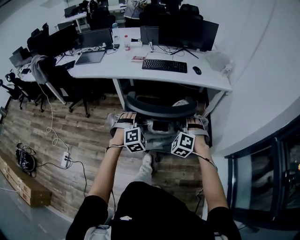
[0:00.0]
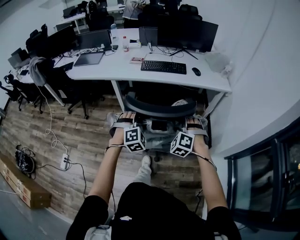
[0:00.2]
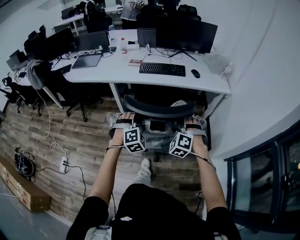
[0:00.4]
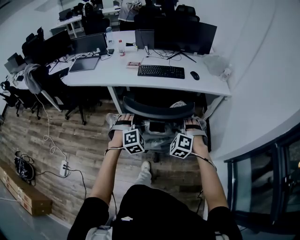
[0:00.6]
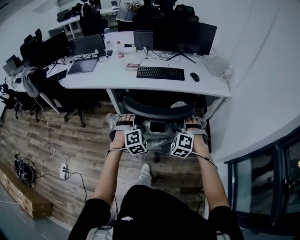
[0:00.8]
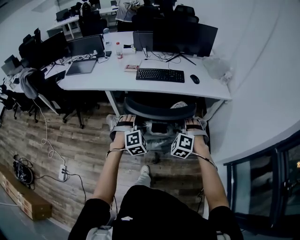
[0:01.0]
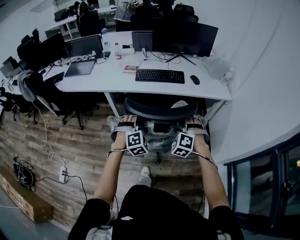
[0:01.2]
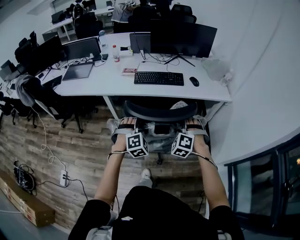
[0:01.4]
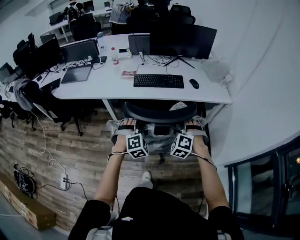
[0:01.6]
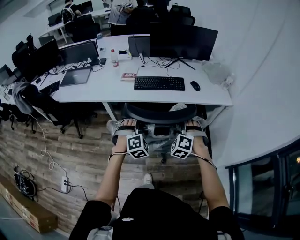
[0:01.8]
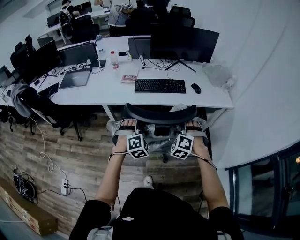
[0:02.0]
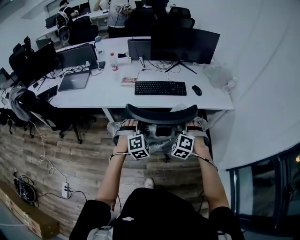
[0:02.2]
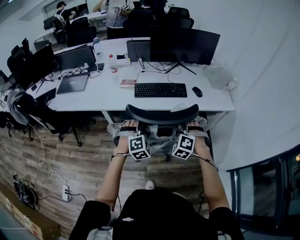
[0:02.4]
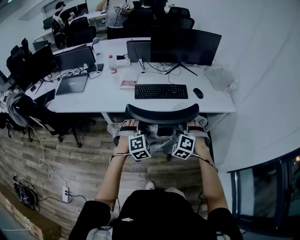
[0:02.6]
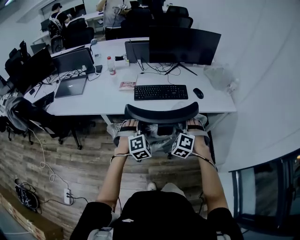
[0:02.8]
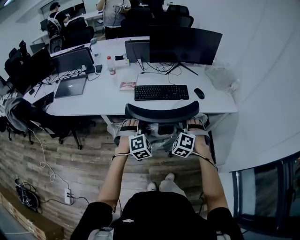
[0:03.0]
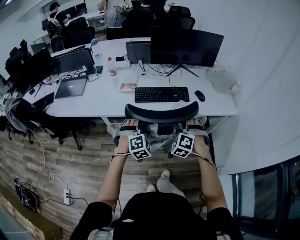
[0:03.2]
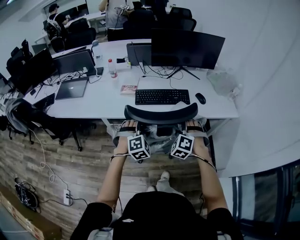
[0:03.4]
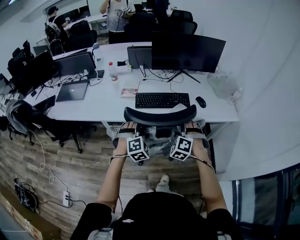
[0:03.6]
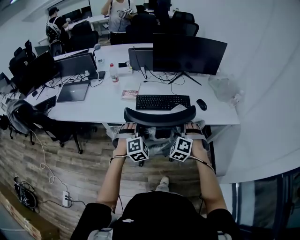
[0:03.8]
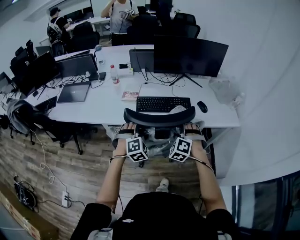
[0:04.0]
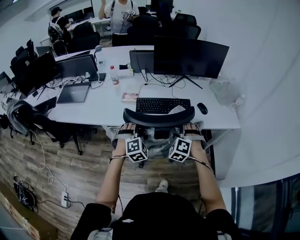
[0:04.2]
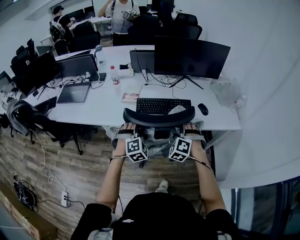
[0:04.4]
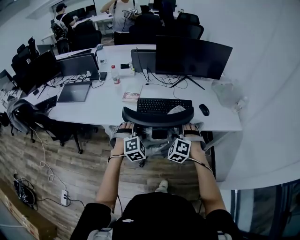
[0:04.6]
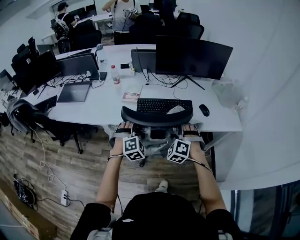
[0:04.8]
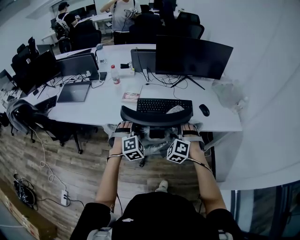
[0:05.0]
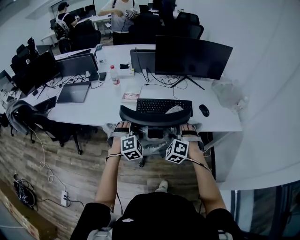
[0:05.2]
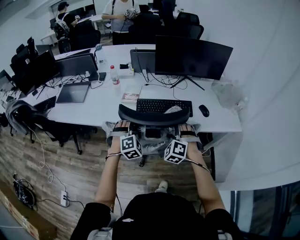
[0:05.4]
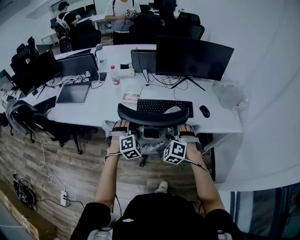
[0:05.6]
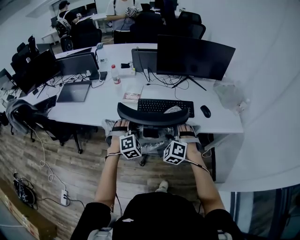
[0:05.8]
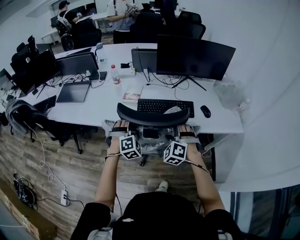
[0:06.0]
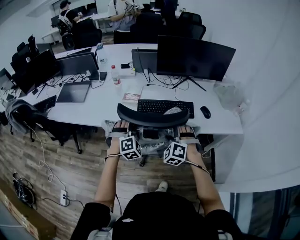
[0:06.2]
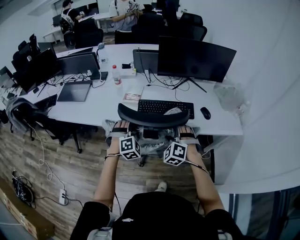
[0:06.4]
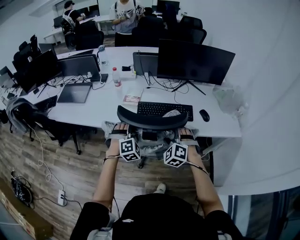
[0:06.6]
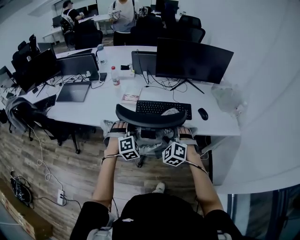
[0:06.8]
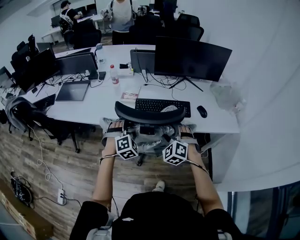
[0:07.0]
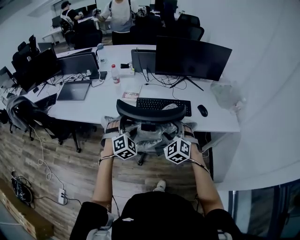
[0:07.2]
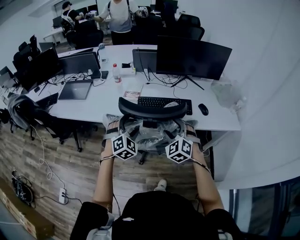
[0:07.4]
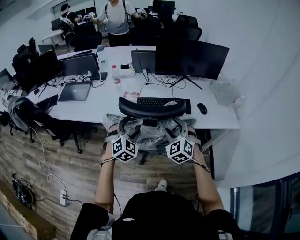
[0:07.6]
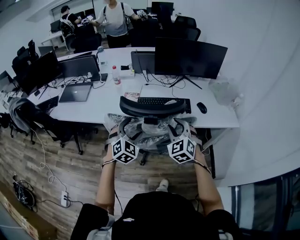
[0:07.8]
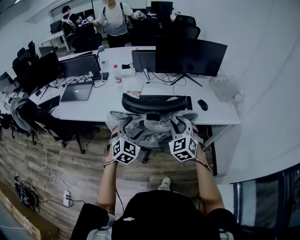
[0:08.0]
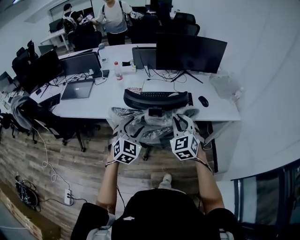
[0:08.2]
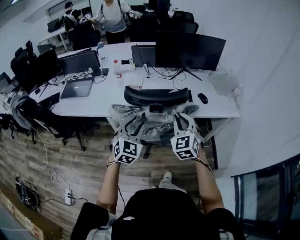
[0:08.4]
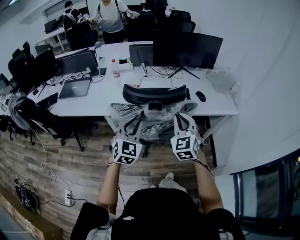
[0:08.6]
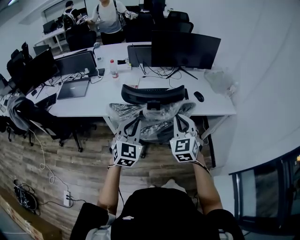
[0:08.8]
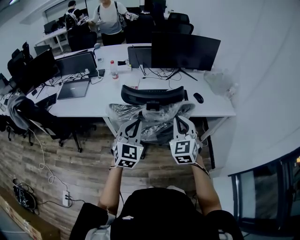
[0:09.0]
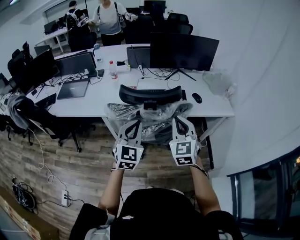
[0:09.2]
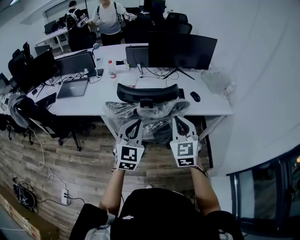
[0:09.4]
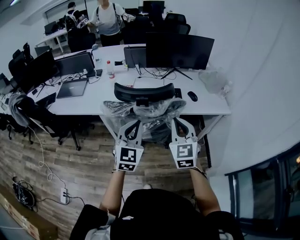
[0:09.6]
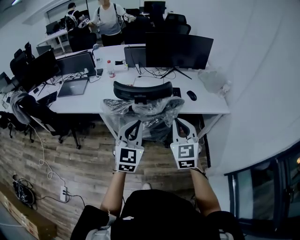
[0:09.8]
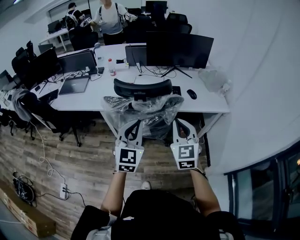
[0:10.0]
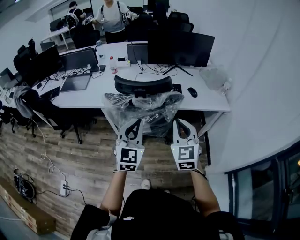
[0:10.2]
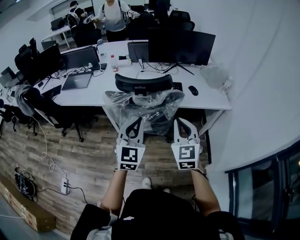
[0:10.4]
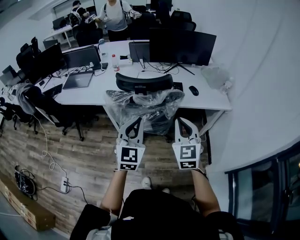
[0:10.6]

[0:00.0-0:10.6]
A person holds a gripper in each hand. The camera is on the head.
0:00.0 to 0:01.6: Both grippers travel together forward, approximately 20 cm.
0:01.6 to 0:03.0: The two grippers go approximately 15 cm forward.
0:03.0 to 0:04.6: The grippers both shift forward by about 10 cm.
0:04.6 to 0:06.0: The grippers move only a little.
0:06.0 to 0:07.6: The left gripper goes approximately 10 cm backward and upward, and rotates roughly 20 degrees; the right gripper goes about 10 cm upward and backward, and swivels some 20 degrees.
0:07.6 to 0:09.0: The grippers both shift backward and upward by roughly 10 cm. The right gripper turns by roughly 20 degrees, and closes up. Meanwhile the left gripper swivels some 30 degrees, and closes up.
0:09.0 to 0:10.6: Both grippers move backward and to the right, about 15 cm.

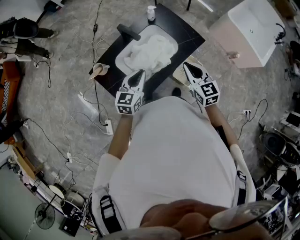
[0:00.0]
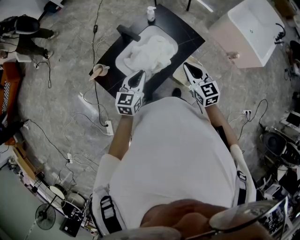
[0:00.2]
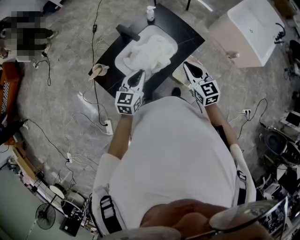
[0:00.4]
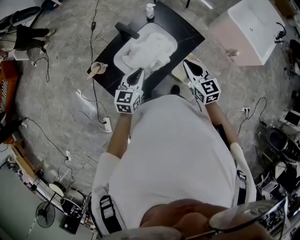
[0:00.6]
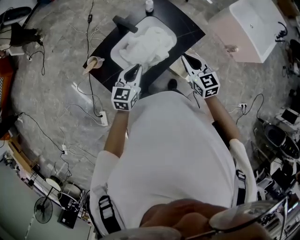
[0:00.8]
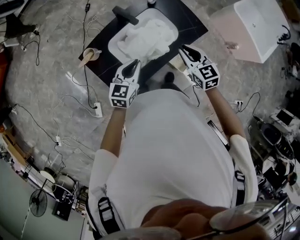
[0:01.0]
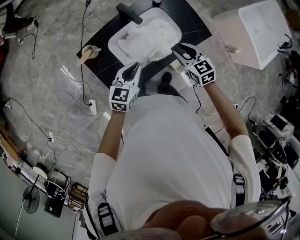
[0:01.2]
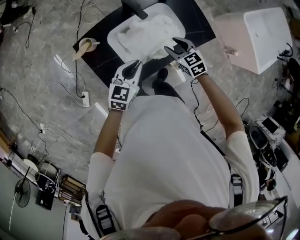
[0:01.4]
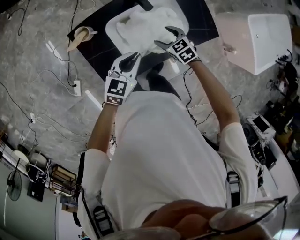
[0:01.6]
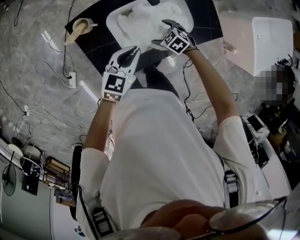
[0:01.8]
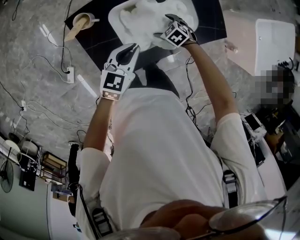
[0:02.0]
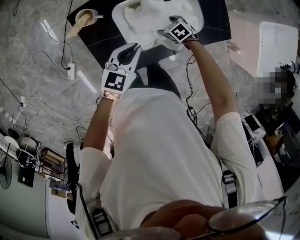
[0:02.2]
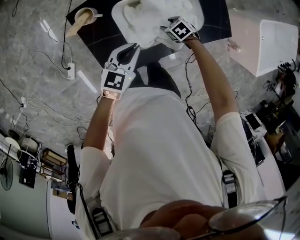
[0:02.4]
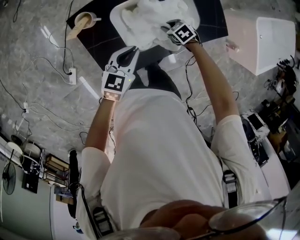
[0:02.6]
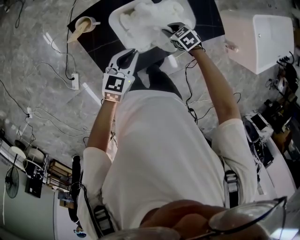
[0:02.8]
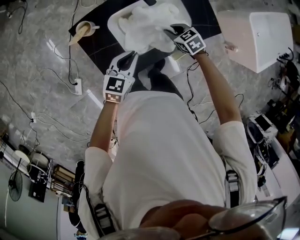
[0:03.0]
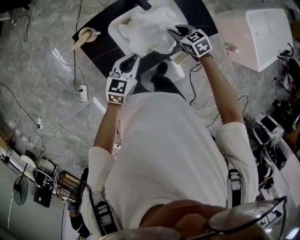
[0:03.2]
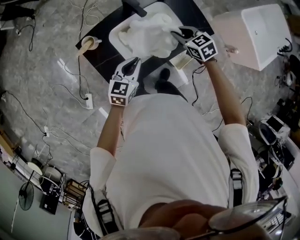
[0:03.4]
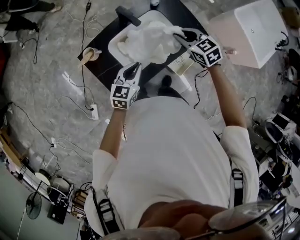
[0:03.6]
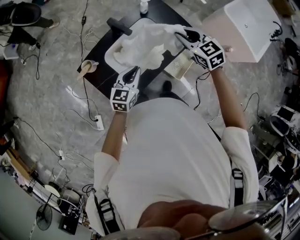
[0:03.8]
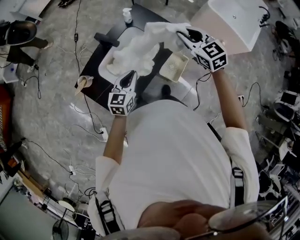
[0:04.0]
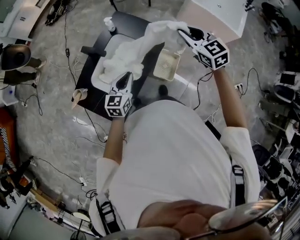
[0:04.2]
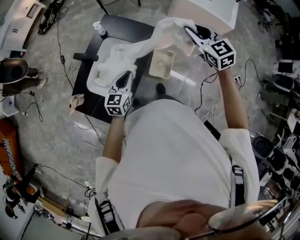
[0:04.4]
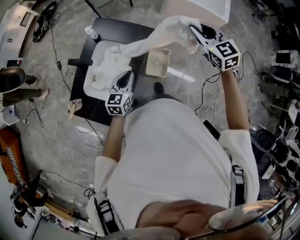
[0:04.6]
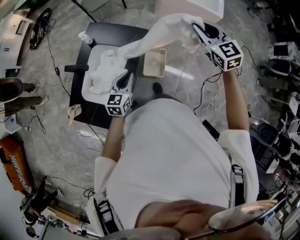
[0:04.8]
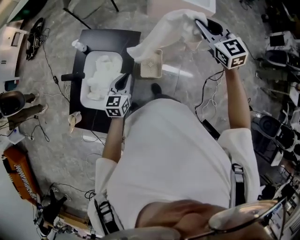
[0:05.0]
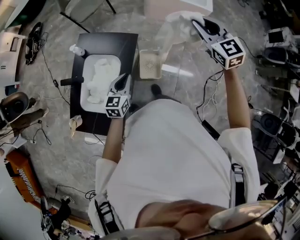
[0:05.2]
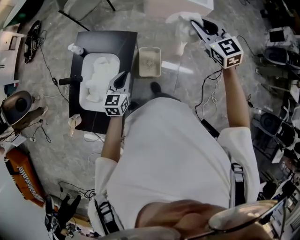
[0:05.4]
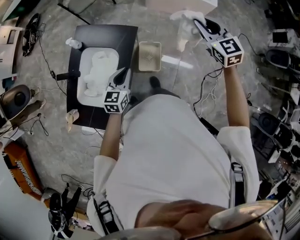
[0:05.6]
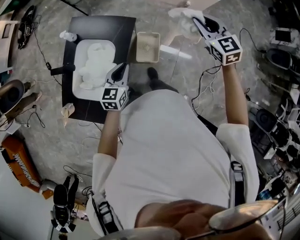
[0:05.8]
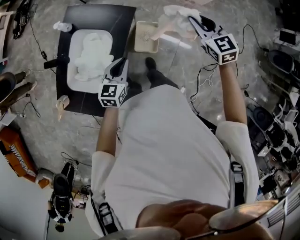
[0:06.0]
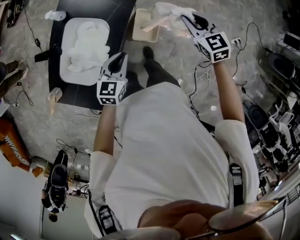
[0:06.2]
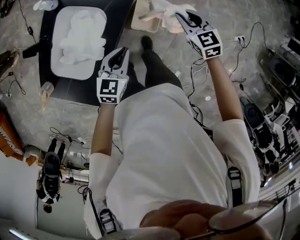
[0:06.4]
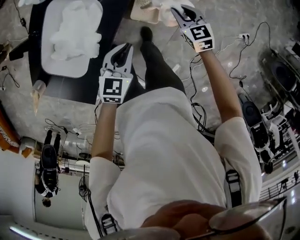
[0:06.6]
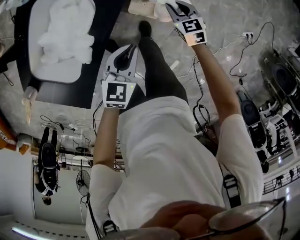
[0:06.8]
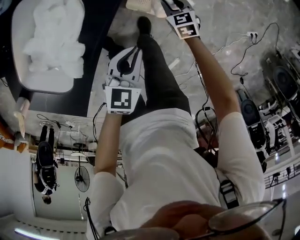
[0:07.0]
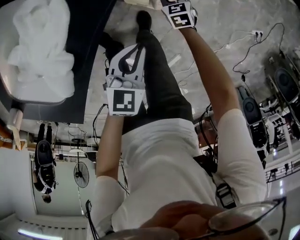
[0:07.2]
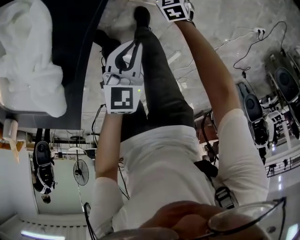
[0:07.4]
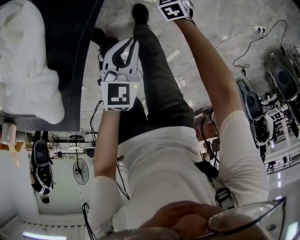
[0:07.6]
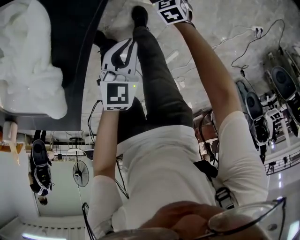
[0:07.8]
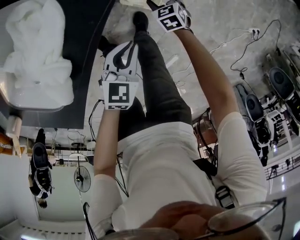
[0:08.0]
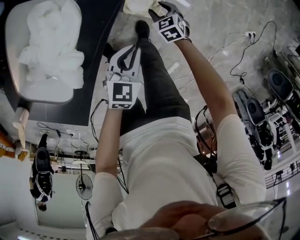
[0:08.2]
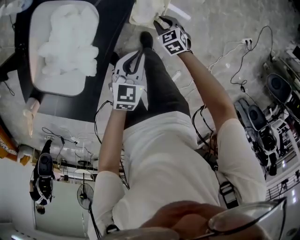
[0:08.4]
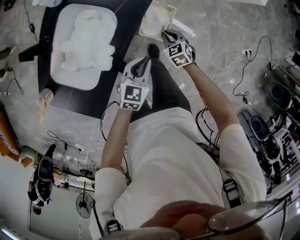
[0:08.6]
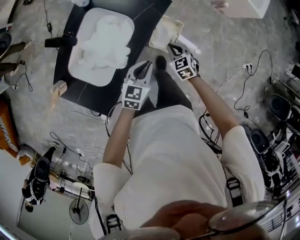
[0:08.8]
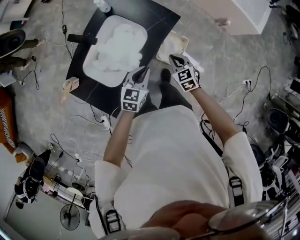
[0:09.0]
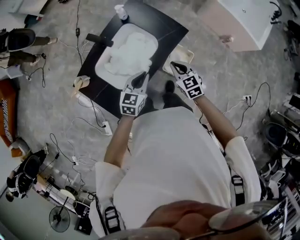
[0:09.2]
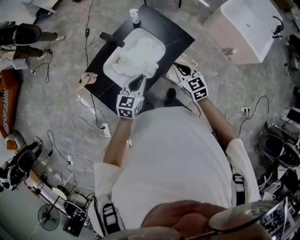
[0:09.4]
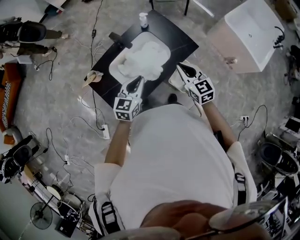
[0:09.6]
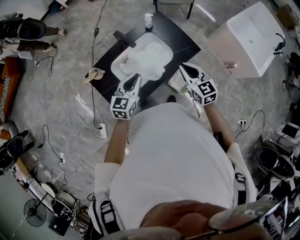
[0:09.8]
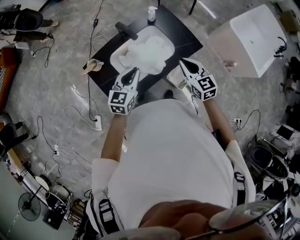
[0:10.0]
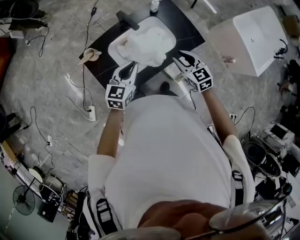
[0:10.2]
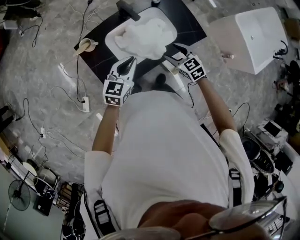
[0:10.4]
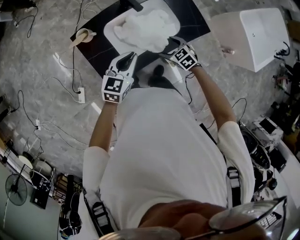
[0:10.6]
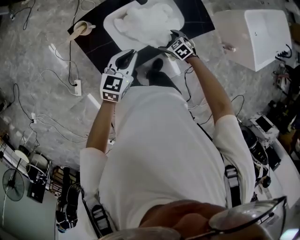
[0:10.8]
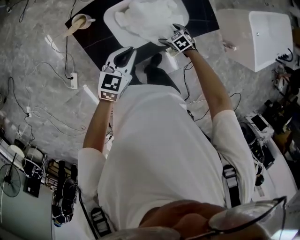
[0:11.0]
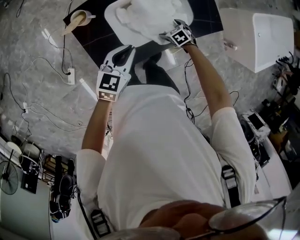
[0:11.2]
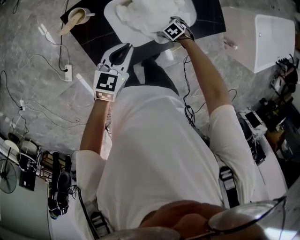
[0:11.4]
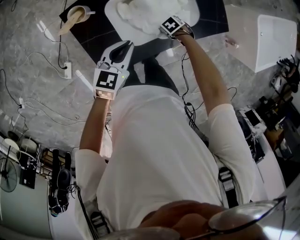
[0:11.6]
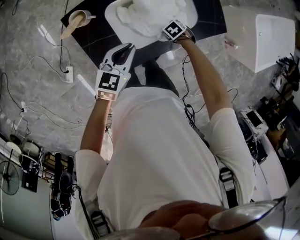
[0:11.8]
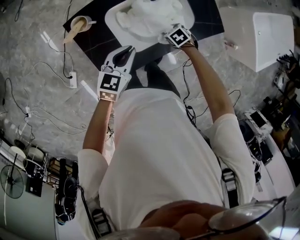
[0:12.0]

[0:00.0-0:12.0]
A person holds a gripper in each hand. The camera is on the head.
0:00.0 to 0:01.6: The right gripper travels downward, to the left and forward by some 30 cm, points its fingers approximately 30 degrees further downward, and opens up. The left gripper travels downward by about 10 cm.
0:01.6 to 0:03.0: The right gripper moves some 15 cm downward and comes back, and closes.
0:03.0 to 0:04.4: The left gripper changes place by roughly 25 cm, and turns by some 20 degrees; the right gripper moves upward, roughly 40 cm, and tilts its fingers some 30 degrees upward.
0:04.4 to 0:06.0: The left gripper is displaced to the right, downward and forward by approximately 15 cm. Meanwhile the right gripper goes about 20 cm to the right and downward.
0:06.0 to 0:07.6: The left gripper shifts approximately 40 cm downward. The right gripper is displaced downward by roughly 70 cm, angles its fingers downward, by about 30 degrees, and opens up.
0:07.6 to 0:09.0: The grippers both shift upward by roughly 40 cm. The right gripper changes its angle by roughly 20 degrees, and closes up.
0:09.0 to 0:10.4: The right gripper changes place by roughly 20 cm, swivels some 30 degrees, and opens. The left gripper changes place by roughly 25 cm, and changes its angle by roughly 20 degrees.
0:10.4 to 0:12.0: The right gripper goes some 25 cm downward, tips its fingers downward by about 40 degrees, and opens, then closes once more, while the left gripper shifts roughly 10 cm downward.

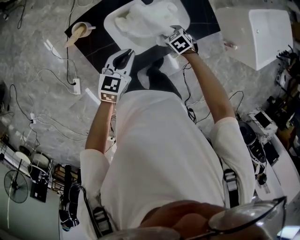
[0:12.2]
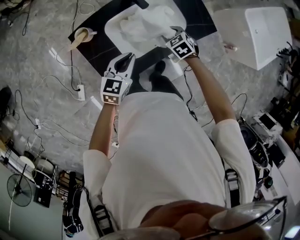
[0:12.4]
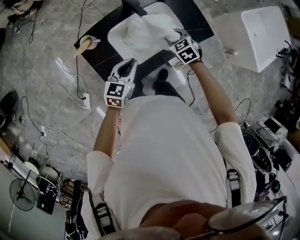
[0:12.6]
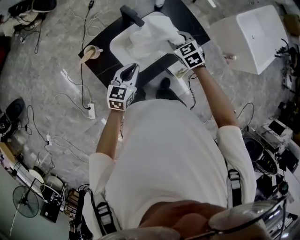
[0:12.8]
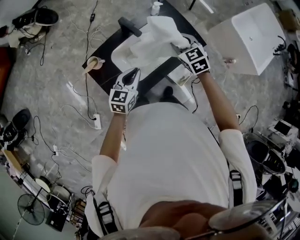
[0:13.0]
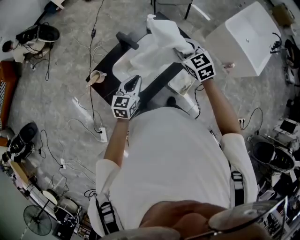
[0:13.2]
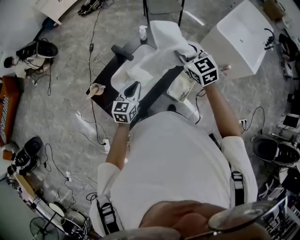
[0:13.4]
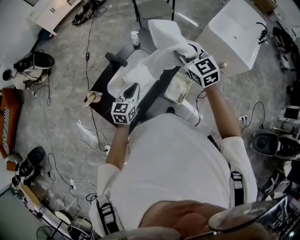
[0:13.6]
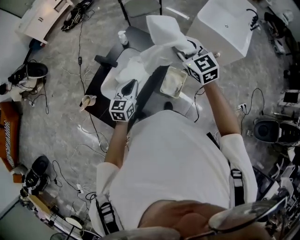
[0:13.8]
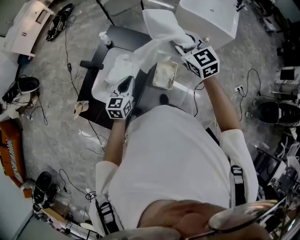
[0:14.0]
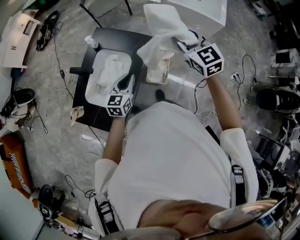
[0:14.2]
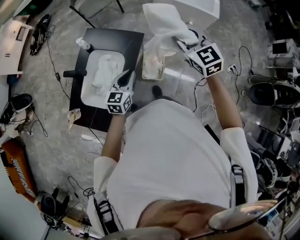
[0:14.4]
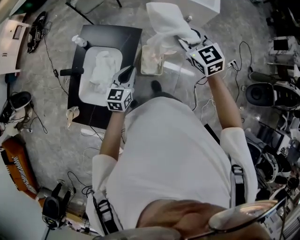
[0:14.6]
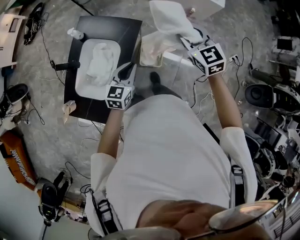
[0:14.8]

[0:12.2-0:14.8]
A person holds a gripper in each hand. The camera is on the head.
0:12.2 to 0:13.4: The right gripper heads upward, covering about 40 cm, and angles its fingers upward, by about 50 degrees. Meanwhile the left gripper travels upward and to the right by about 15 cm.
0:13.4 to 0:14.8: The right gripper changes place by roughly 35 cm, and turns by approximately 30 degrees; the left gripper changes place by about 30 cm, and swivels some 30 degrees.
